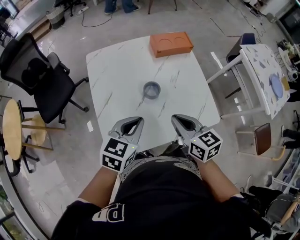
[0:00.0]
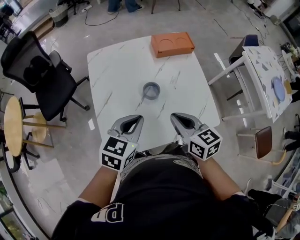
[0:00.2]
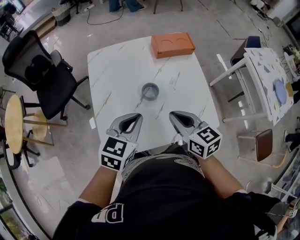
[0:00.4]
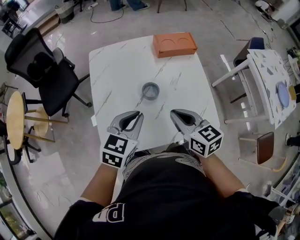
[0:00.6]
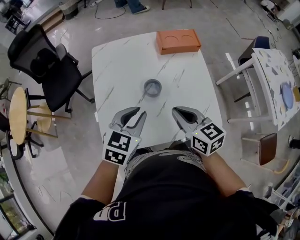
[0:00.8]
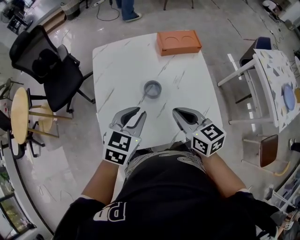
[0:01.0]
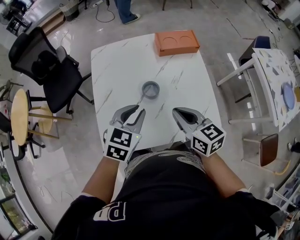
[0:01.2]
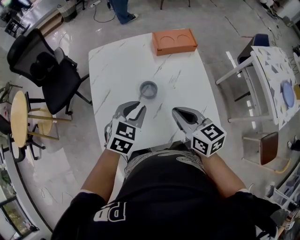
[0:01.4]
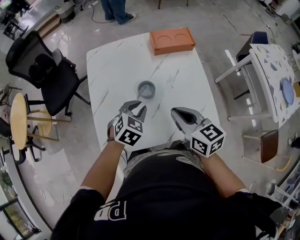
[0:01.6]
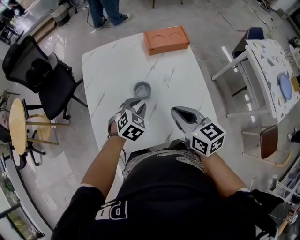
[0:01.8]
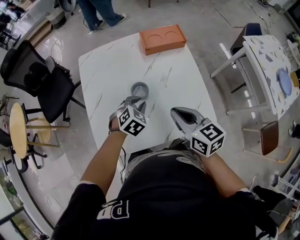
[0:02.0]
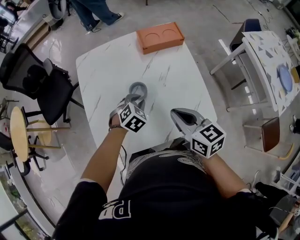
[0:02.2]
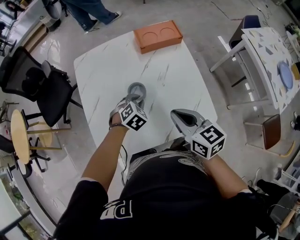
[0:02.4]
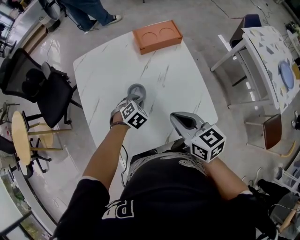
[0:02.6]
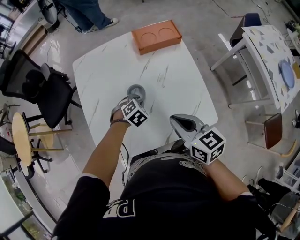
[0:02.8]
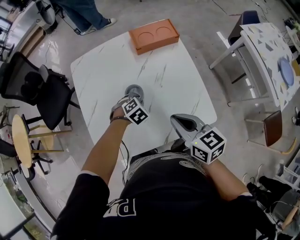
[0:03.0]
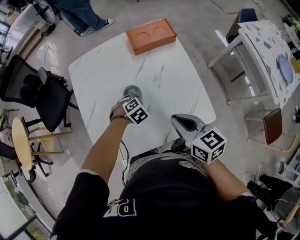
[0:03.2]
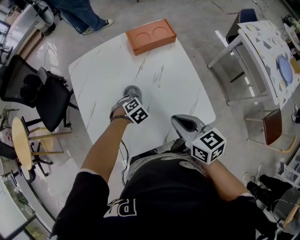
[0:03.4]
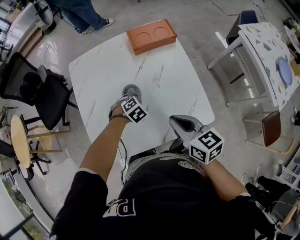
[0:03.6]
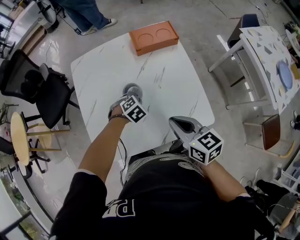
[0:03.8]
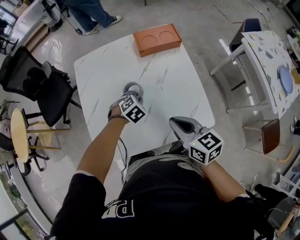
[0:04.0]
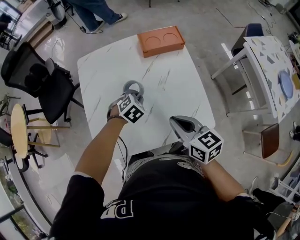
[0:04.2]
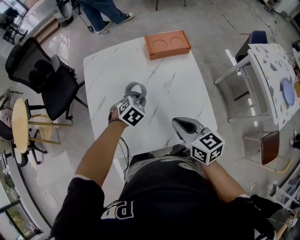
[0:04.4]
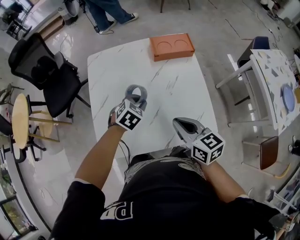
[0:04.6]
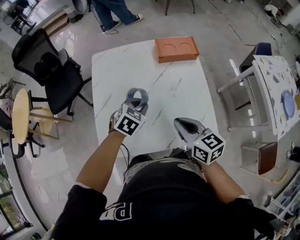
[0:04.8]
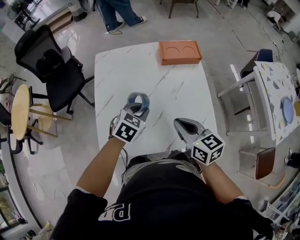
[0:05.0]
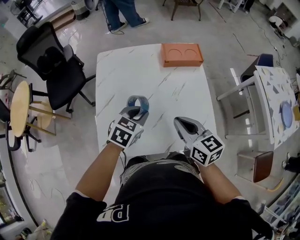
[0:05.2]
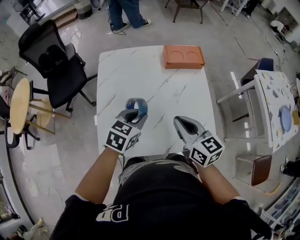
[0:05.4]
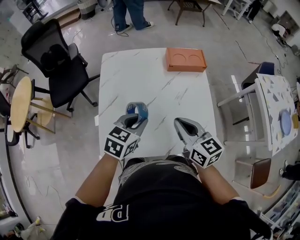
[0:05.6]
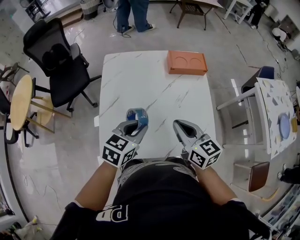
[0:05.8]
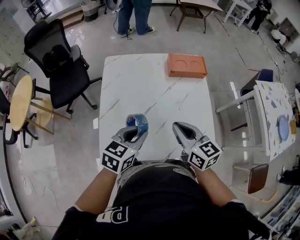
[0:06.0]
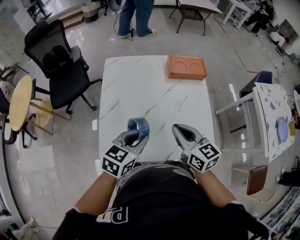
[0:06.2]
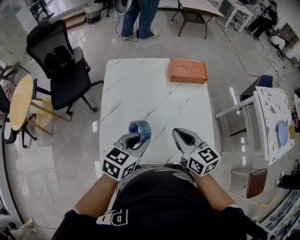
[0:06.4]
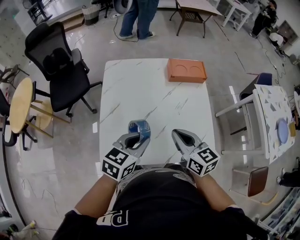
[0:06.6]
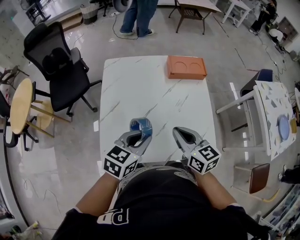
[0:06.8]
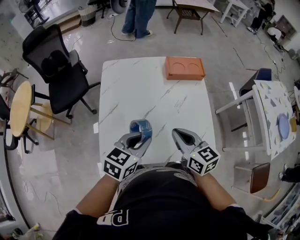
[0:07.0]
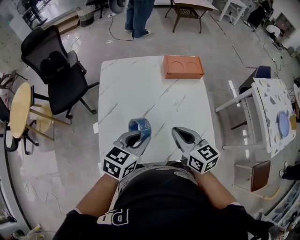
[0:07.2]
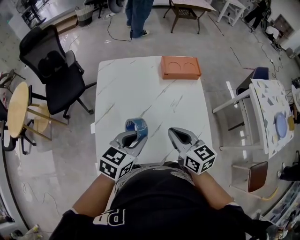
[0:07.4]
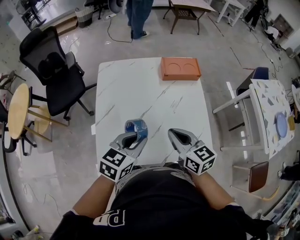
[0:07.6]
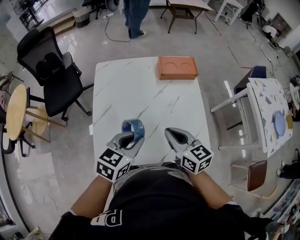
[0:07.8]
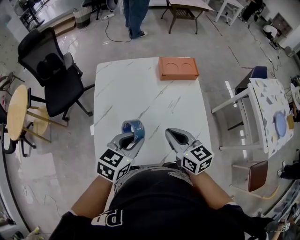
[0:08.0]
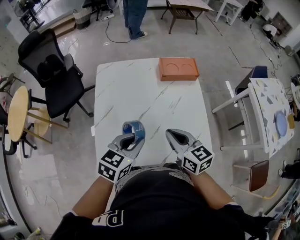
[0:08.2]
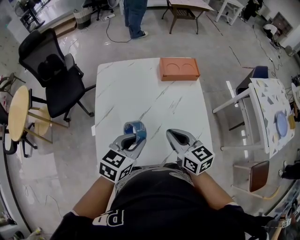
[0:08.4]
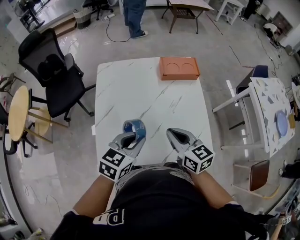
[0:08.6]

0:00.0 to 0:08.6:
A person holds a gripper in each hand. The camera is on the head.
0:00.0 to 0:01.4: The left gripper goes some 10 cm forward and to the right. Meanwhile the right gripper changes place by some 5 cm.
0:01.4 to 0:02.8: The left gripper goes roughly 20 cm downward, and changes its angle by about 30 degrees.
0:02.8 to 0:04.4: The left gripper heads upward, covering some 10 cm.
0:04.4 to 0:05.8: The left gripper goes approximately 15 cm upward, backward and to the left, and changes its angle by approximately 40 degrees; the right gripper is displaced to the left by approximately 5 cm.
0:05.8 to 0:07.2: The grippers move only a little.
0:07.2 to 0:08.6: The two grippers keep their place.

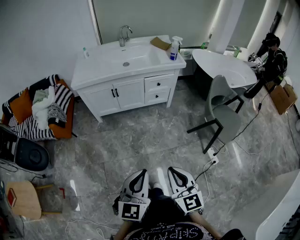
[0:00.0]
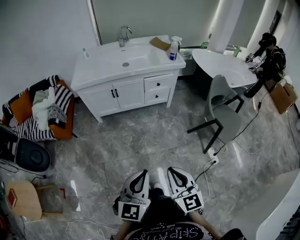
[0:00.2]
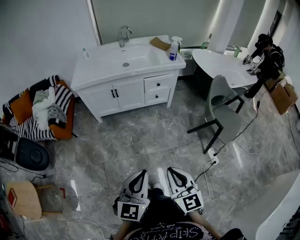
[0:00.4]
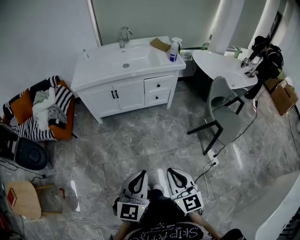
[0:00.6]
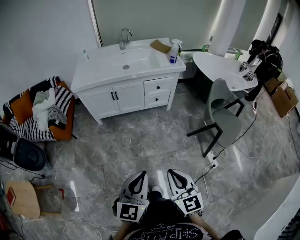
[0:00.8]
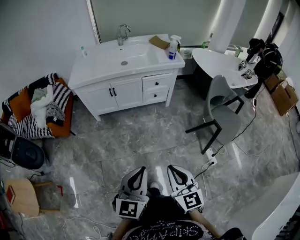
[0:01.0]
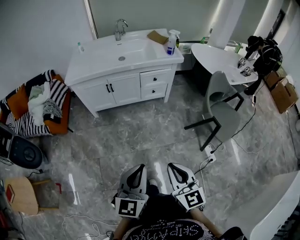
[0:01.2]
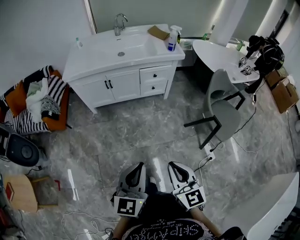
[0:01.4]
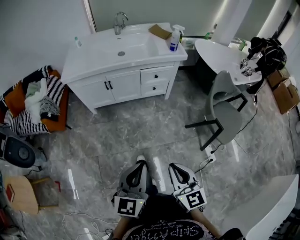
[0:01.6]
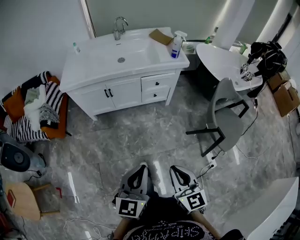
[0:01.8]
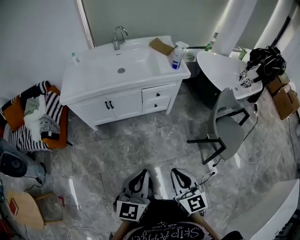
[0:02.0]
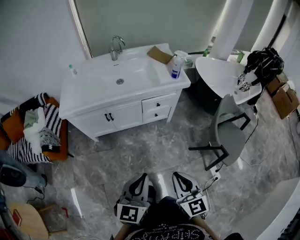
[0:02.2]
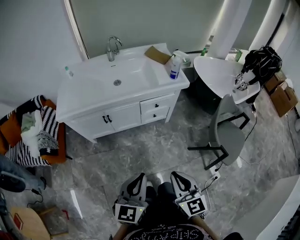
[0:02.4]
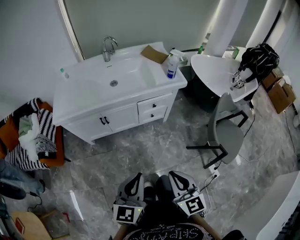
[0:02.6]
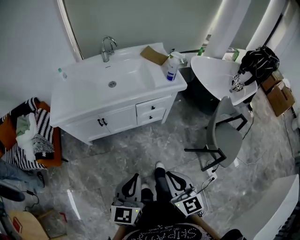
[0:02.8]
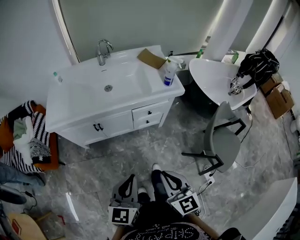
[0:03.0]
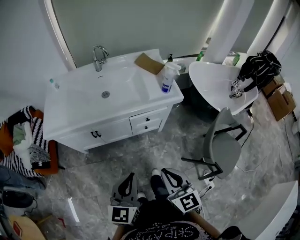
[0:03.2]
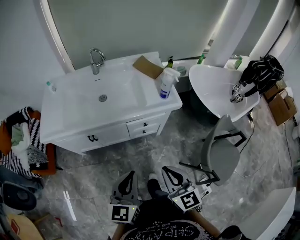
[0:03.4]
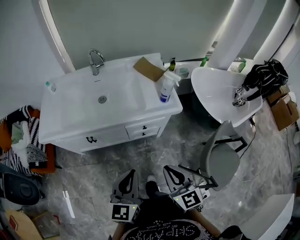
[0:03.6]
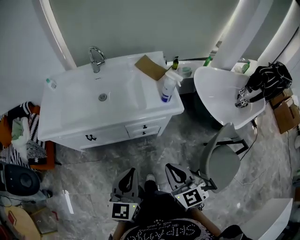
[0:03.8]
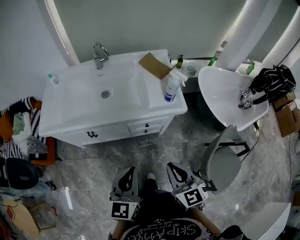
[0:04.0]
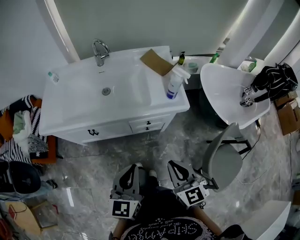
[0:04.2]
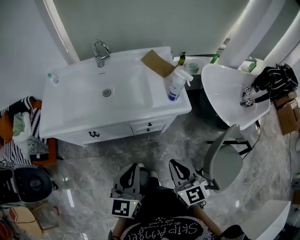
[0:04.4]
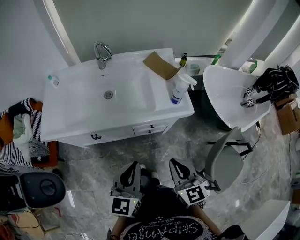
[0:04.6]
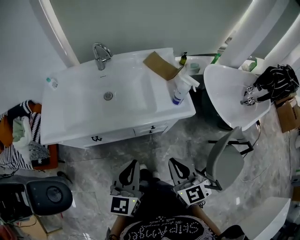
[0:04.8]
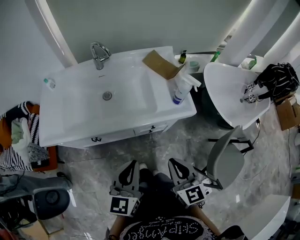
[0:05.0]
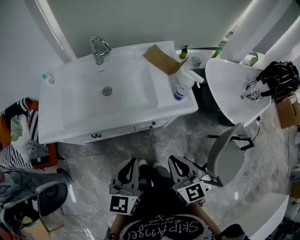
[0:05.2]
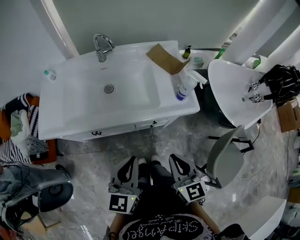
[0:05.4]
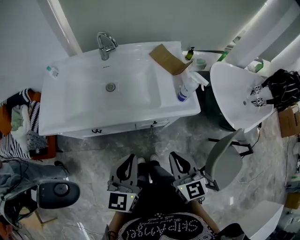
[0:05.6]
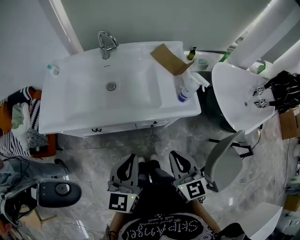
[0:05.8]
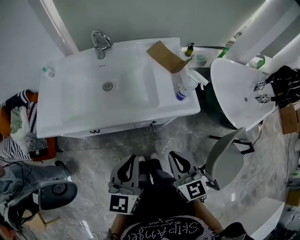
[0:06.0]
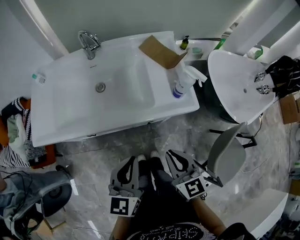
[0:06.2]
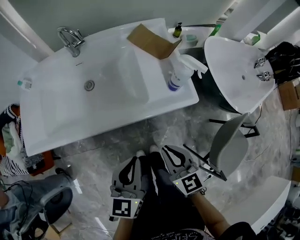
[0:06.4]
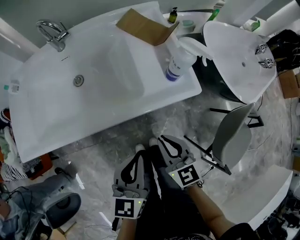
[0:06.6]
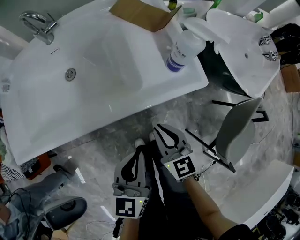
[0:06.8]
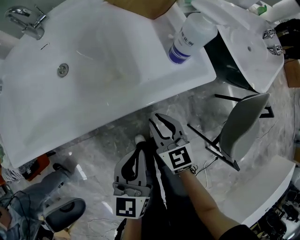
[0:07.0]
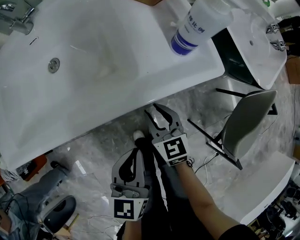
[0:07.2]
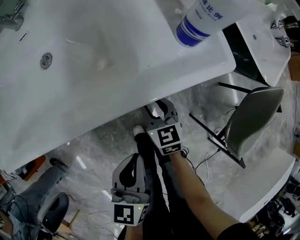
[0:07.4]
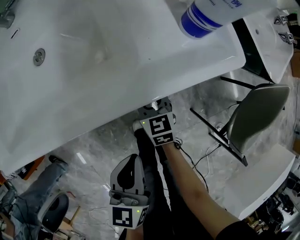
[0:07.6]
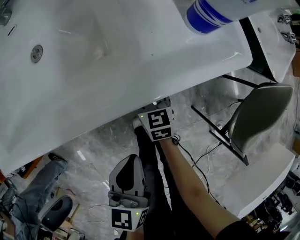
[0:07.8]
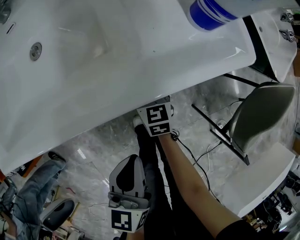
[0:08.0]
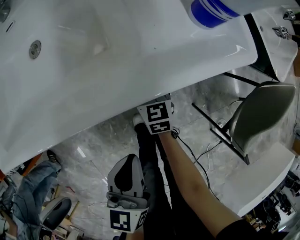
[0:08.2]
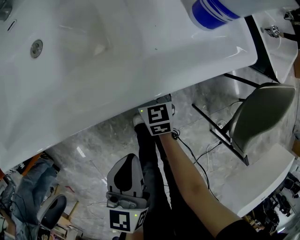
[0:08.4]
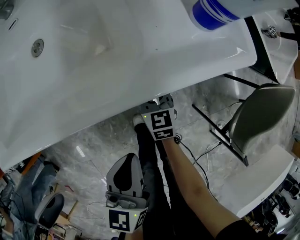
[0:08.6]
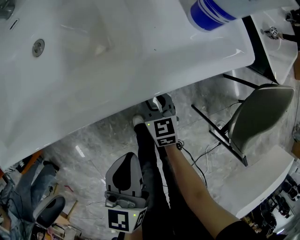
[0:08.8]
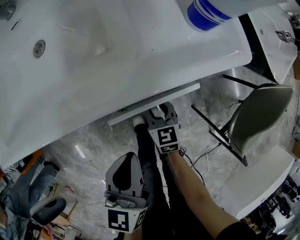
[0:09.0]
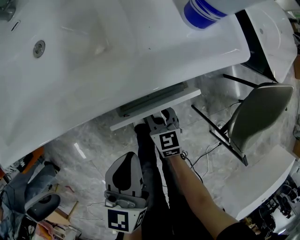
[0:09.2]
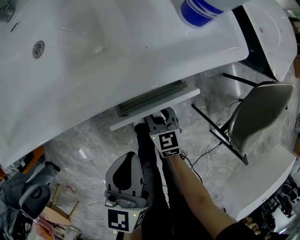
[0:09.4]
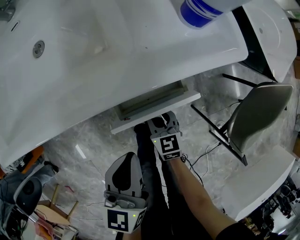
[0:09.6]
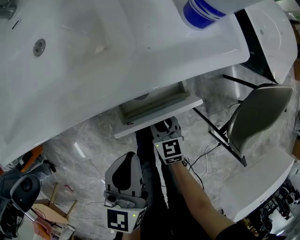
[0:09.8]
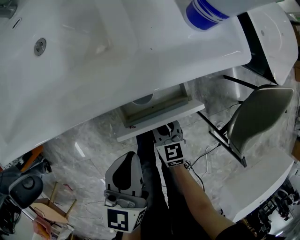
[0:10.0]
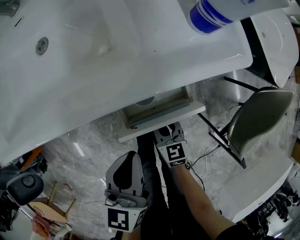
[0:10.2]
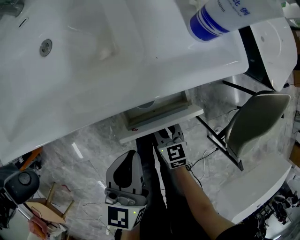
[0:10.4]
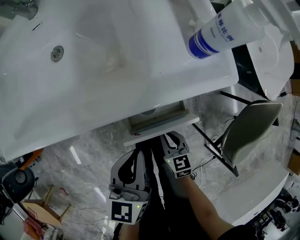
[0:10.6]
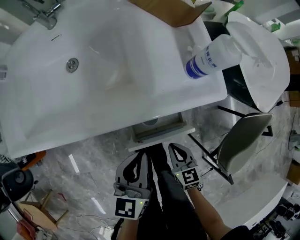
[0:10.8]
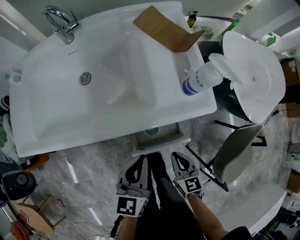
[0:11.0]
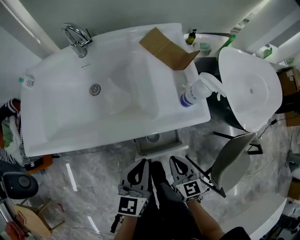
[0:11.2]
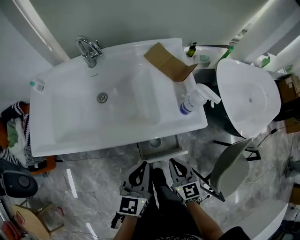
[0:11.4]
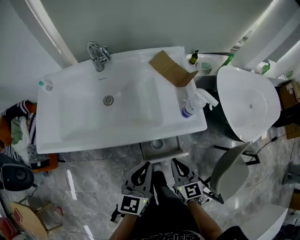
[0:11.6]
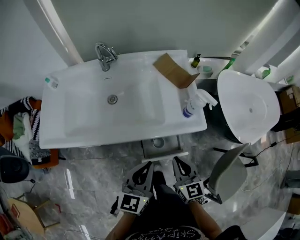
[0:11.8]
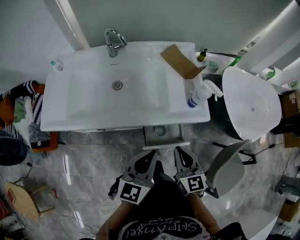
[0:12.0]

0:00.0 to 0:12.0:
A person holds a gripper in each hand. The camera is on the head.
0:00.0 to 0:01.6: The left gripper heads forward, covering some 10 cm; the right gripper is displaced forward and to the right by about 10 cm.
0:01.6 to 0:03.0: Both grippers move forward, some 25 cm.
0:03.0 to 0:04.4: Both grippers travel together forward and to the right, roughly 20 cm.
0:04.4 to 0:06.0: The grippers both shift forward by approximately 10 cm.
0:06.0 to 0:07.6: The left gripper heads downward, covering approximately 25 cm, and turns by about 20 degrees; the right gripper is displaced downward and forward by approximately 40 cm, swivels some 20 degrees, and opens its fingers.
0:07.6 to 0:09.0: The right gripper moves backward, roughly 5 cm.
0:09.0 to 0:10.4: The right gripper heads backward, covering some 5 cm.
0:10.4 to 0:12.0: The left gripper shifts about 20 cm upward; the right gripper shifts approximately 40 cm upward, swivels approximately 30 degrees, and closes up.

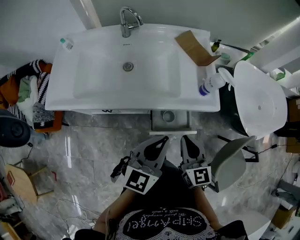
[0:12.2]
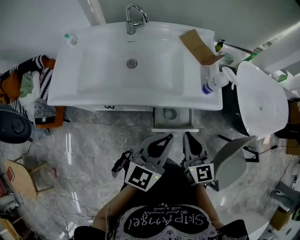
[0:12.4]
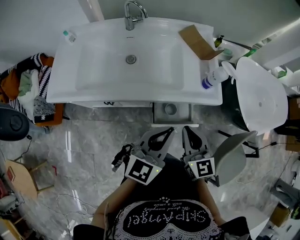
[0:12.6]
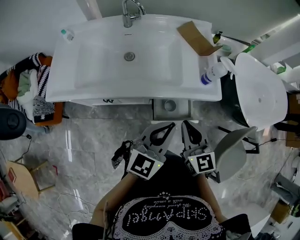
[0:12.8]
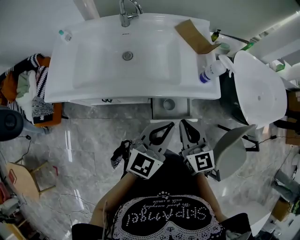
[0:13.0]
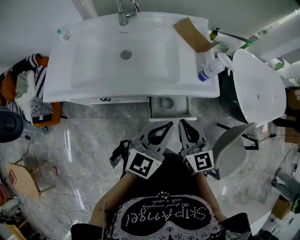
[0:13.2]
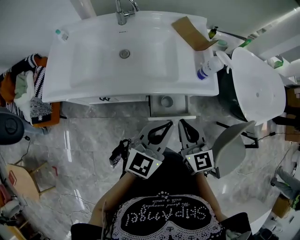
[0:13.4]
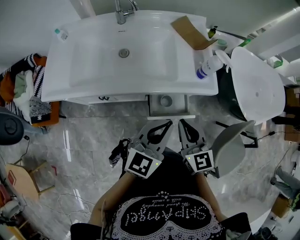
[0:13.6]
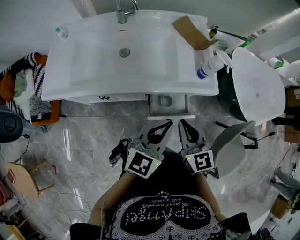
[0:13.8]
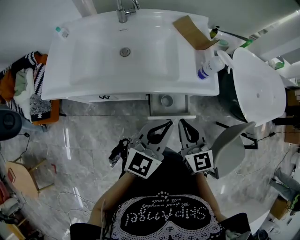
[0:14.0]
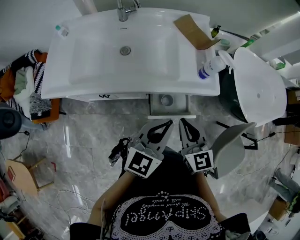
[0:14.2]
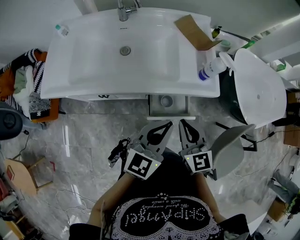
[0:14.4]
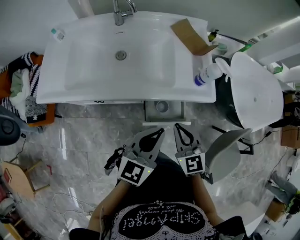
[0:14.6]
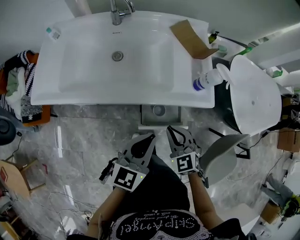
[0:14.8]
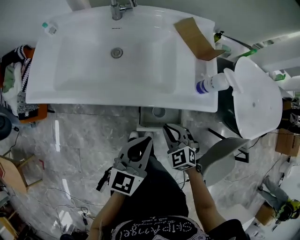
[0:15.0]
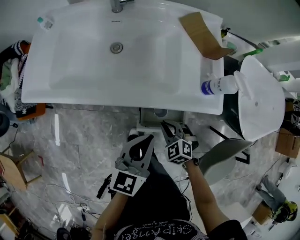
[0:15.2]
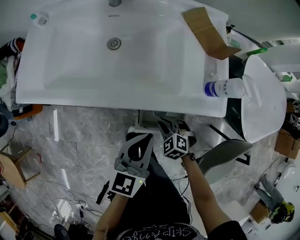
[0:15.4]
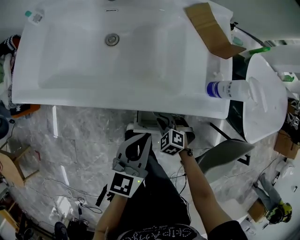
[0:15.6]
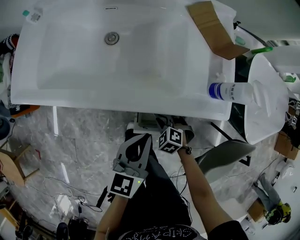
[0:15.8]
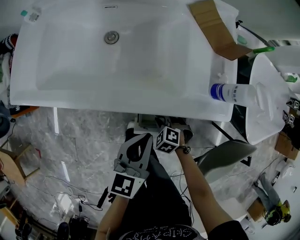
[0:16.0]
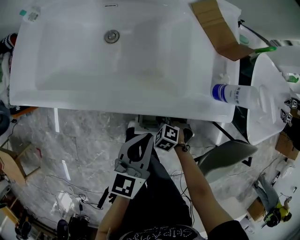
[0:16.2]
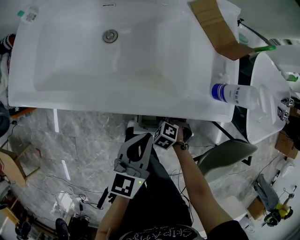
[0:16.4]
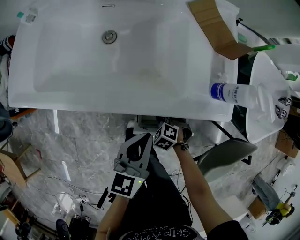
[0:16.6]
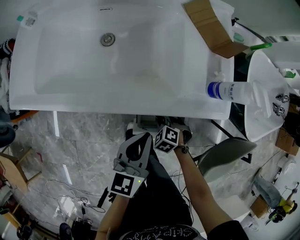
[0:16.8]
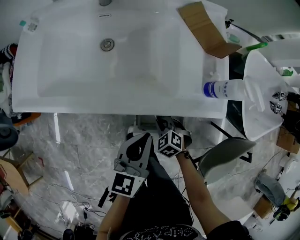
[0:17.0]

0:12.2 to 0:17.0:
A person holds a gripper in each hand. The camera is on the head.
0:12.2 to 0:13.8: The grippers move only a little.
0:13.8 to 0:15.4: The right gripper is displaced downward by roughly 30 cm, and points its fingers approximately 50 degrees further downward. Meanwhile the left gripper travels downward and forward by about 10 cm, and swivels some 30 degrees.
0:15.4 to 0:17.0: The right gripper reaches approximately 10 cm downward, then returns.
